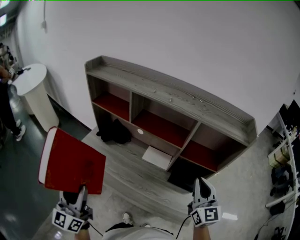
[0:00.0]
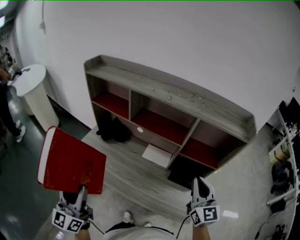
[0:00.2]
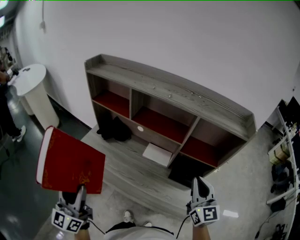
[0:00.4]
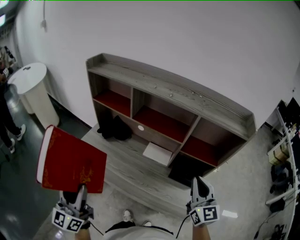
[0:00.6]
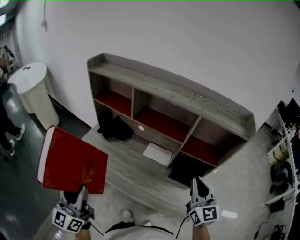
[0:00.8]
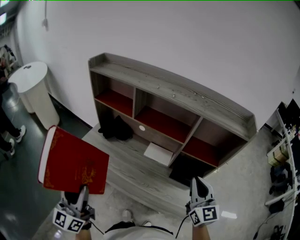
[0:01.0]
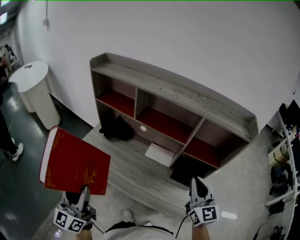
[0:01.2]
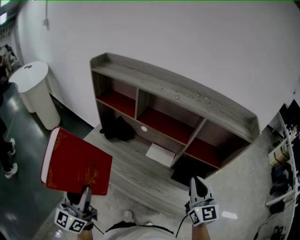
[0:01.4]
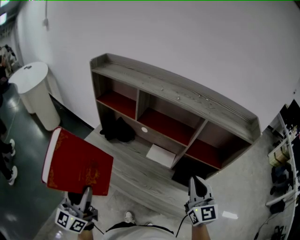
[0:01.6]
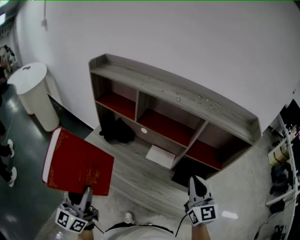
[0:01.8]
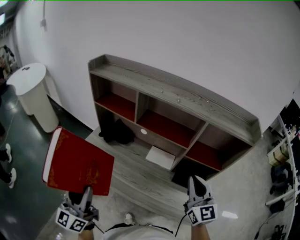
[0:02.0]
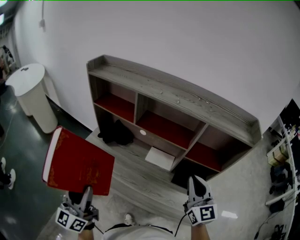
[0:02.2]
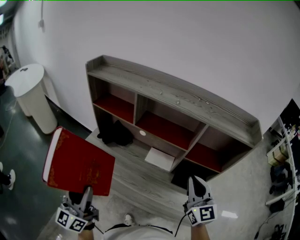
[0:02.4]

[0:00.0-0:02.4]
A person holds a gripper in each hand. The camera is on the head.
0:00.0 to 0:01.2: The grippers move only a little.
0:01.2 to 0:02.4: The left gripper moves approximately 5 cm.

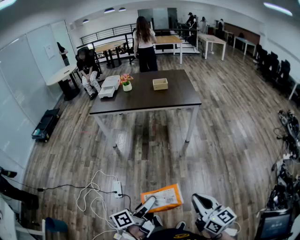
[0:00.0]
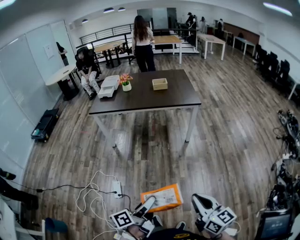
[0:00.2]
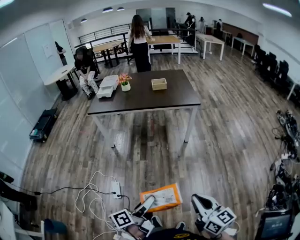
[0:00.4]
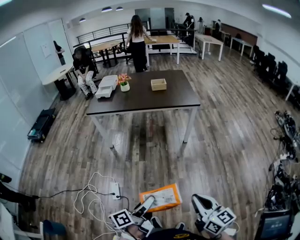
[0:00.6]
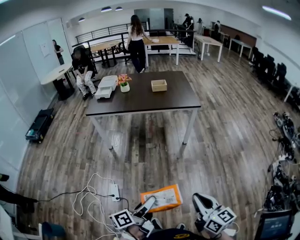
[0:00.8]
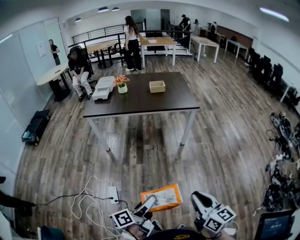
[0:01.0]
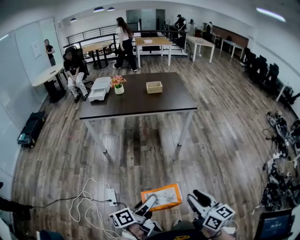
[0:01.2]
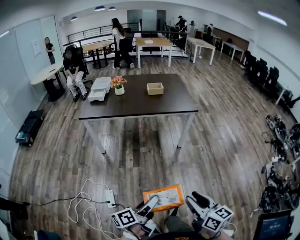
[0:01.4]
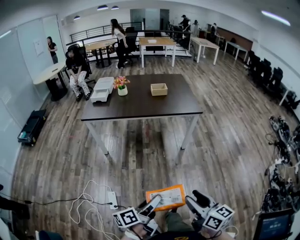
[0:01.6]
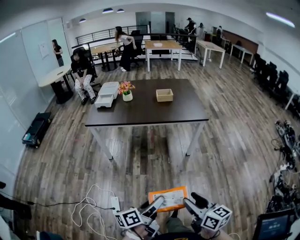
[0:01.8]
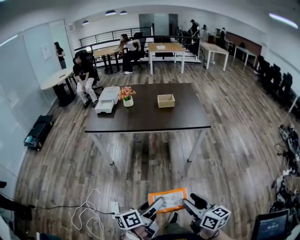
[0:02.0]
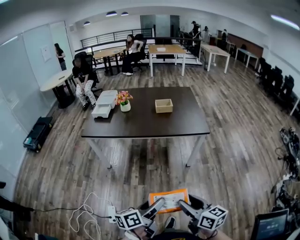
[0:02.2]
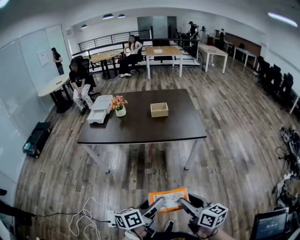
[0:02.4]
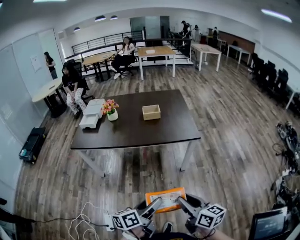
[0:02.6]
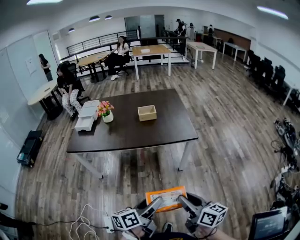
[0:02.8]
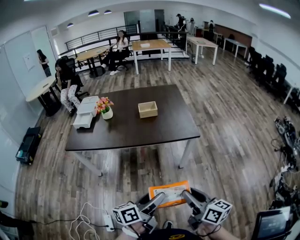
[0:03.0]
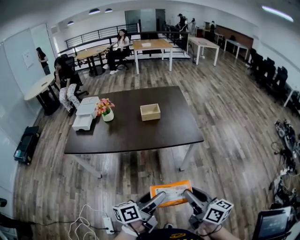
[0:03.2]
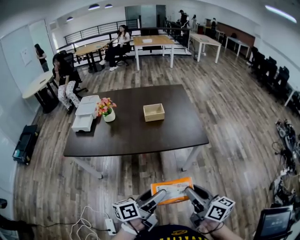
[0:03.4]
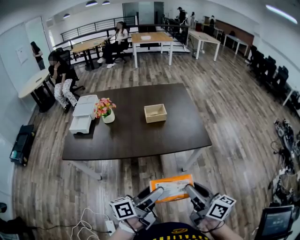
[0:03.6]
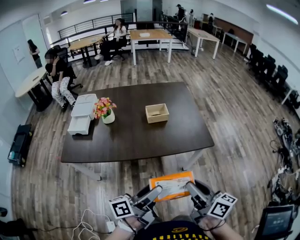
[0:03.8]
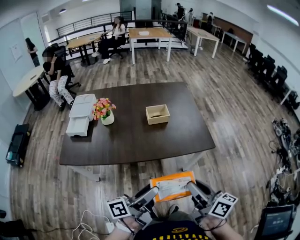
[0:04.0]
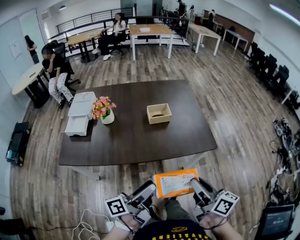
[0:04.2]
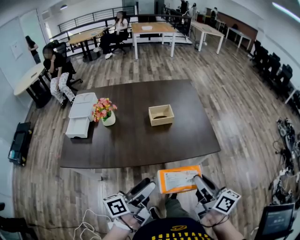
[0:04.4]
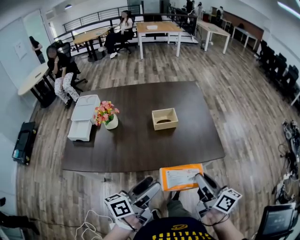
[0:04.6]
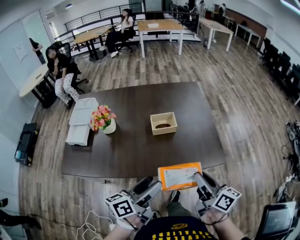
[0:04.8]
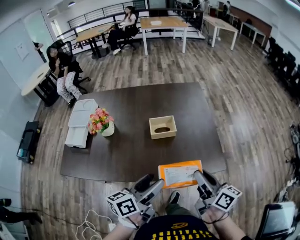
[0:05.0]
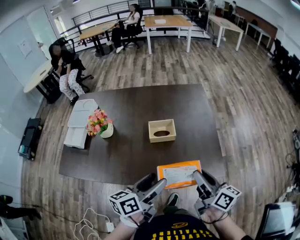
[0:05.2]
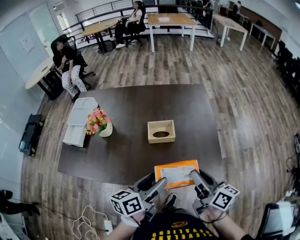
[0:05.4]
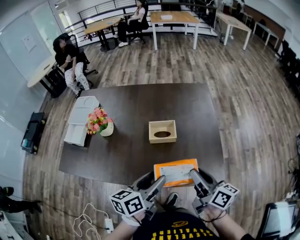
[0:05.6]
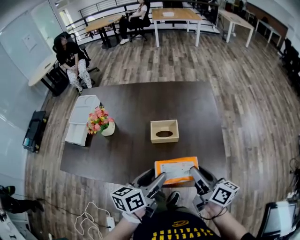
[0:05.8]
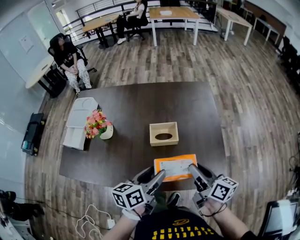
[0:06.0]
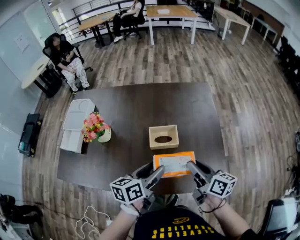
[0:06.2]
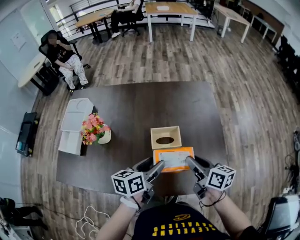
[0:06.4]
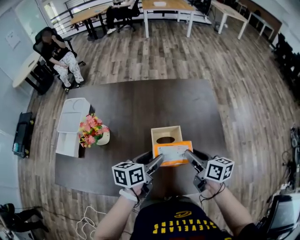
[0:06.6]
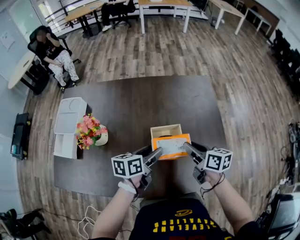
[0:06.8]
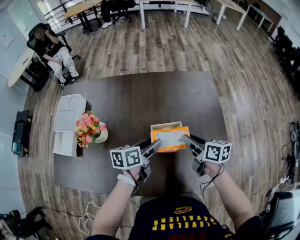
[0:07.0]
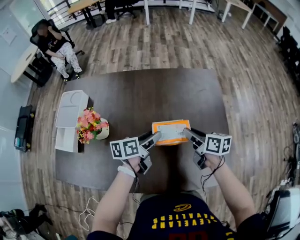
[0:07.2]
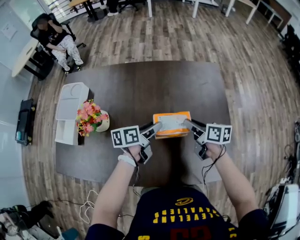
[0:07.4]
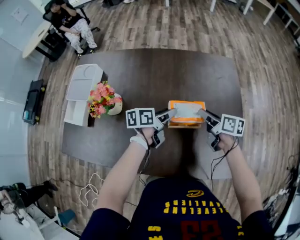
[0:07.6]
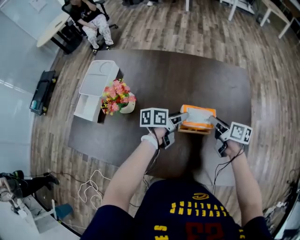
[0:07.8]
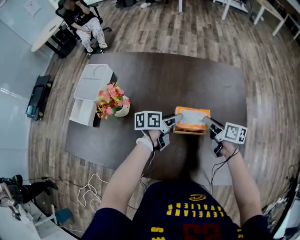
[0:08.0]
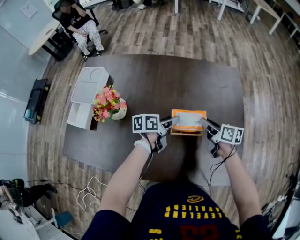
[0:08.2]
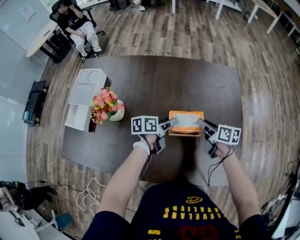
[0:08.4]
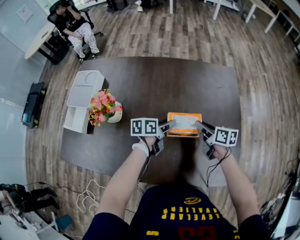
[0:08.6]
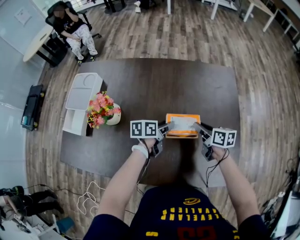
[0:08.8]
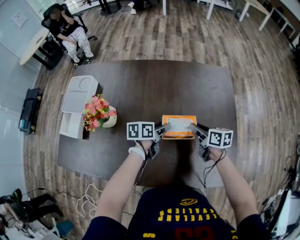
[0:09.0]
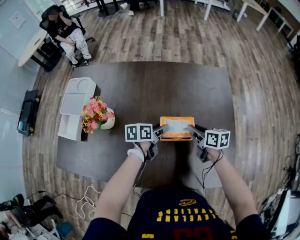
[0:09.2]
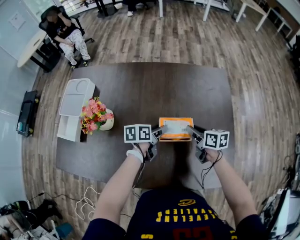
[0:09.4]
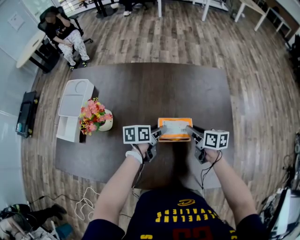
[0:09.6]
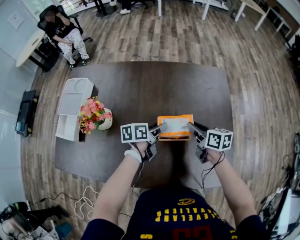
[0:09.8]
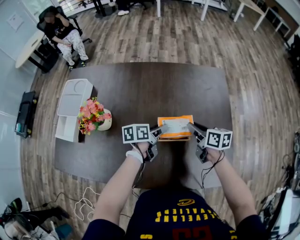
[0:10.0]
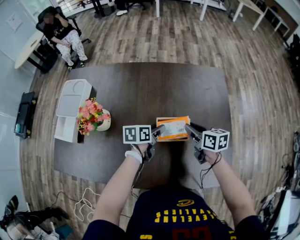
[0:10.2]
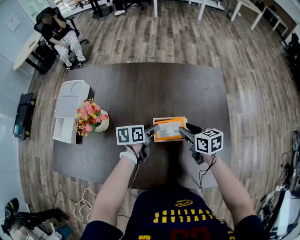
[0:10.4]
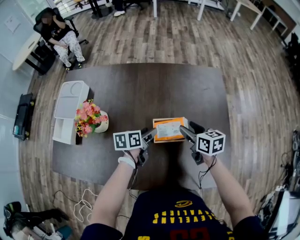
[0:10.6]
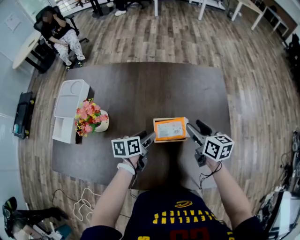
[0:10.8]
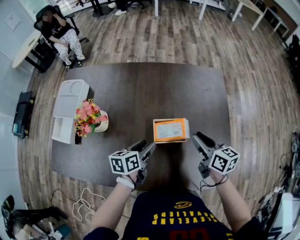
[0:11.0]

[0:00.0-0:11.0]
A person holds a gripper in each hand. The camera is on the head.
0:00.0 to 0:01.6: The two grippers go about 15 cm forward and to the left. The right gripper opens its fingers.
0:01.6 to 0:03.2: Both grippers move forward, roughly 35 cm.
0:03.2 to 0:04.8: The right gripper shifts some 35 cm forward. Meanwhile the left gripper travels forward and to the left by roughly 30 cm.
0:04.8 to 0:06.2: The two grippers go roughly 20 cm forward.
0:06.2 to 0:07.8: The two grippers go approximately 20 cm forward and downward. The right gripper swivels approximately 20 degrees.
0:07.8 to 0:09.4: There are only small adjustments of the grippers.
0:09.4 to 0:11.0: The right gripper heads upward, covering about 10 cm. The left gripper travels backward by roughly 5 cm.

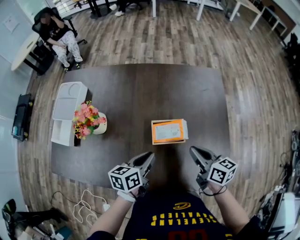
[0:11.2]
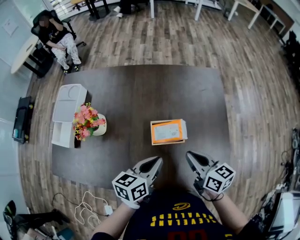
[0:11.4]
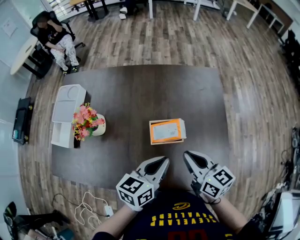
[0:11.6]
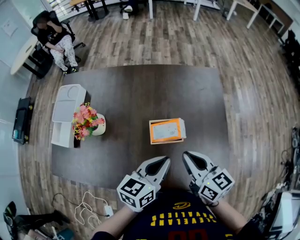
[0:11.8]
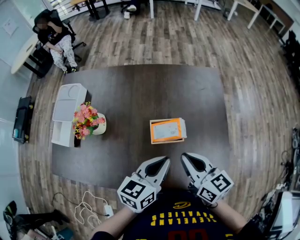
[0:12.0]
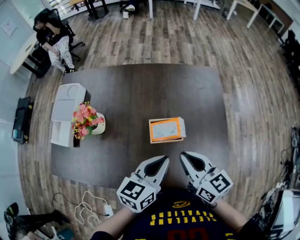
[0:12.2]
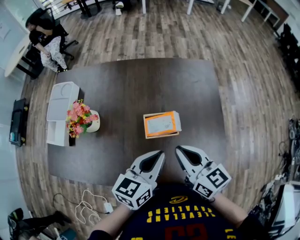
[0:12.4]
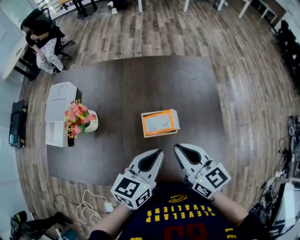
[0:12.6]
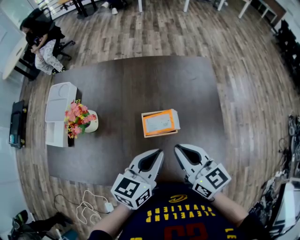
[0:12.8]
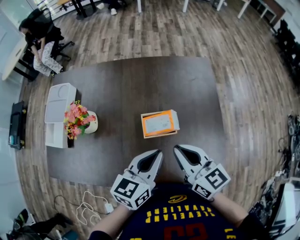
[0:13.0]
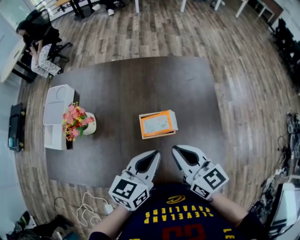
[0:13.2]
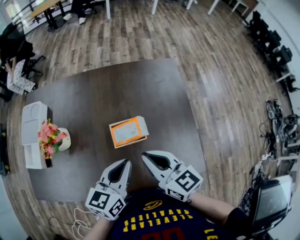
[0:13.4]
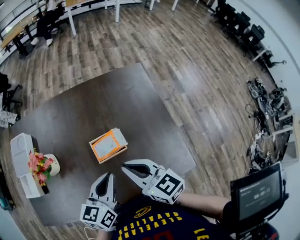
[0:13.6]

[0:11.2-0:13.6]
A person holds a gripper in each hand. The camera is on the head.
0:11.2 to 0:12.4: The left gripper travels upward and to the right by roughly 15 cm, and turns by some 20 degrees. Meanwhile the right gripper goes about 10 cm upward.
0:12.4 to 0:13.6: The grippers stay close to where they were, moving slightly.

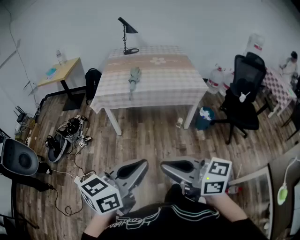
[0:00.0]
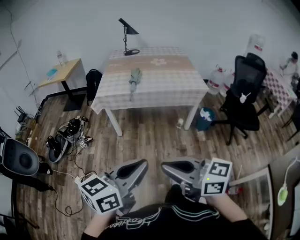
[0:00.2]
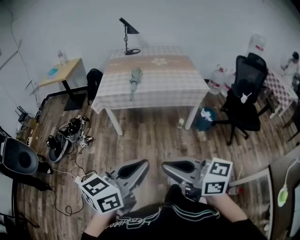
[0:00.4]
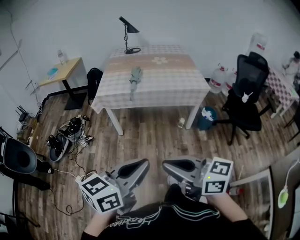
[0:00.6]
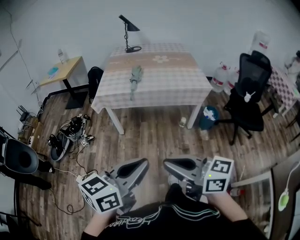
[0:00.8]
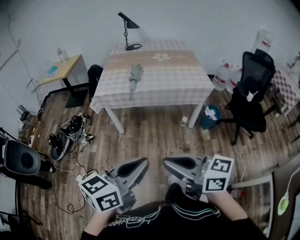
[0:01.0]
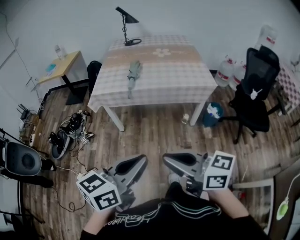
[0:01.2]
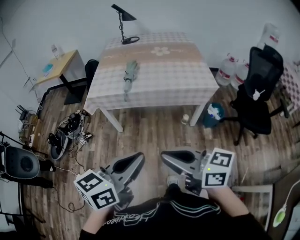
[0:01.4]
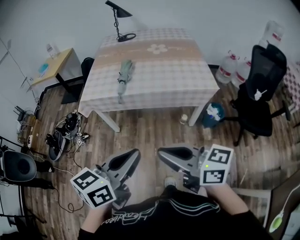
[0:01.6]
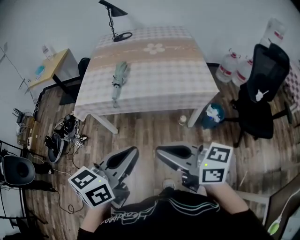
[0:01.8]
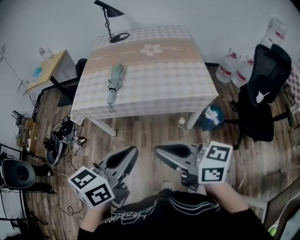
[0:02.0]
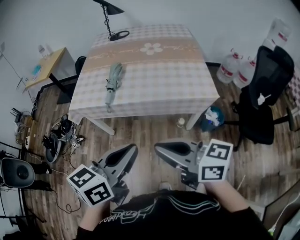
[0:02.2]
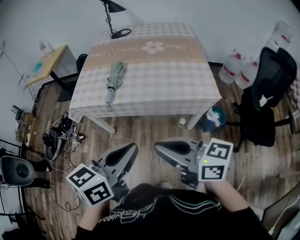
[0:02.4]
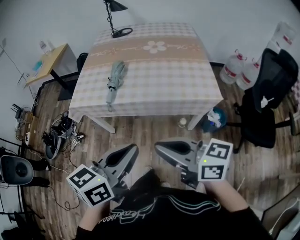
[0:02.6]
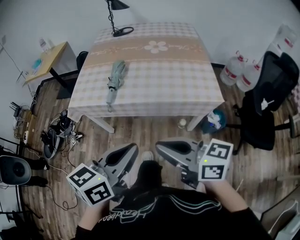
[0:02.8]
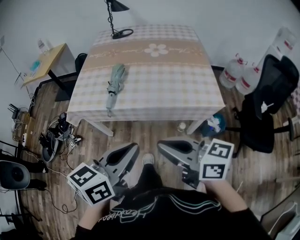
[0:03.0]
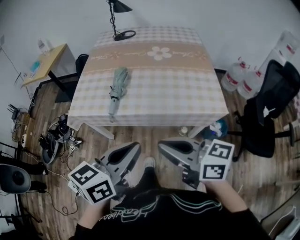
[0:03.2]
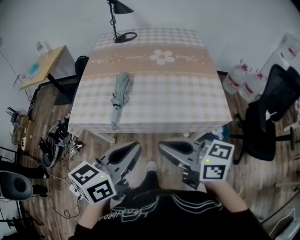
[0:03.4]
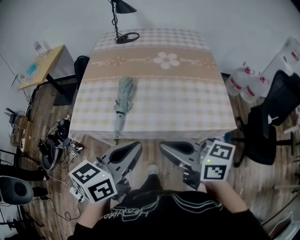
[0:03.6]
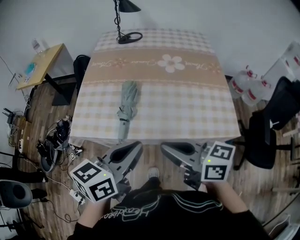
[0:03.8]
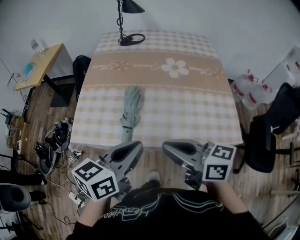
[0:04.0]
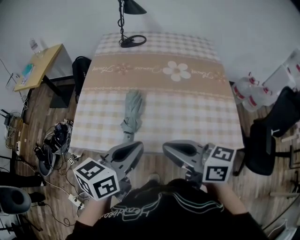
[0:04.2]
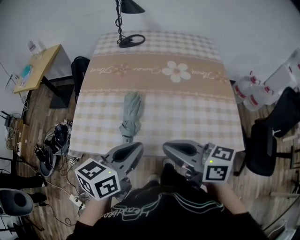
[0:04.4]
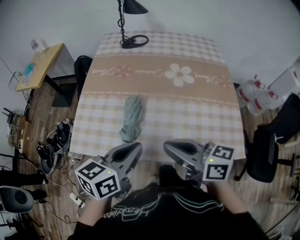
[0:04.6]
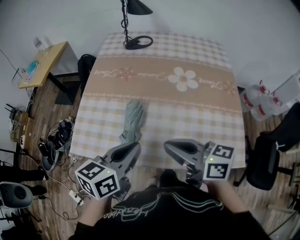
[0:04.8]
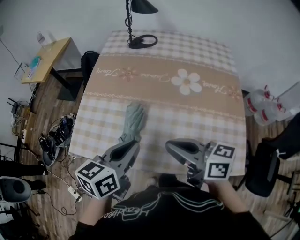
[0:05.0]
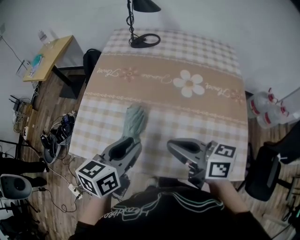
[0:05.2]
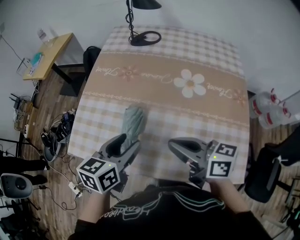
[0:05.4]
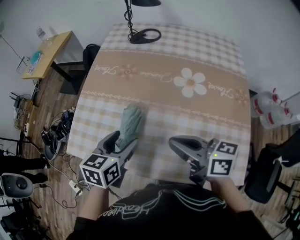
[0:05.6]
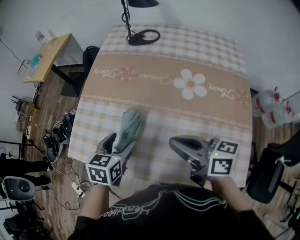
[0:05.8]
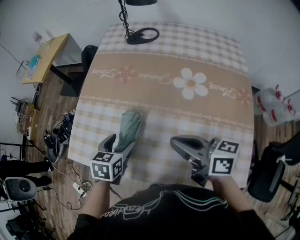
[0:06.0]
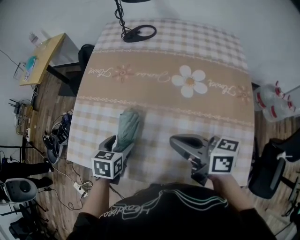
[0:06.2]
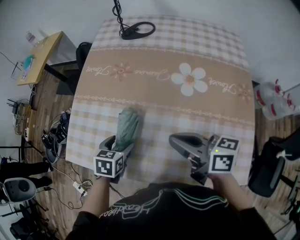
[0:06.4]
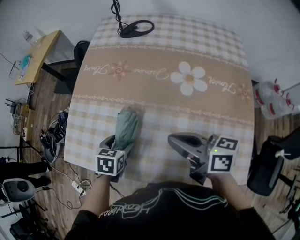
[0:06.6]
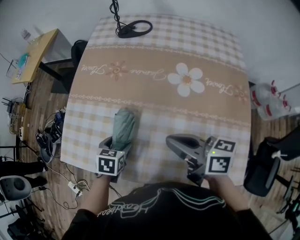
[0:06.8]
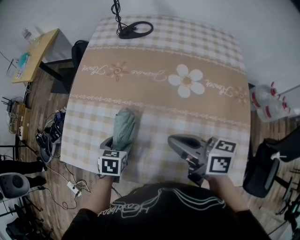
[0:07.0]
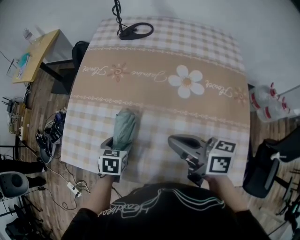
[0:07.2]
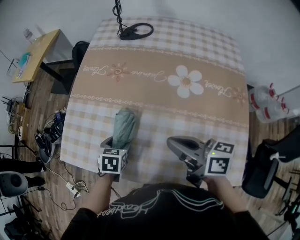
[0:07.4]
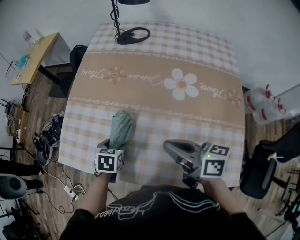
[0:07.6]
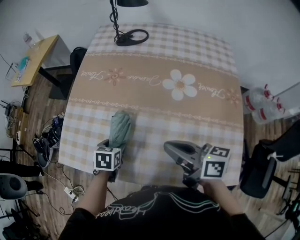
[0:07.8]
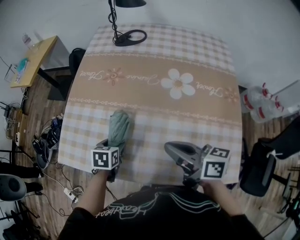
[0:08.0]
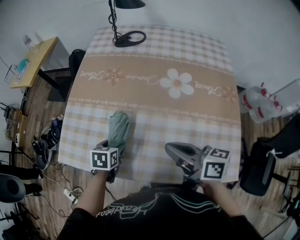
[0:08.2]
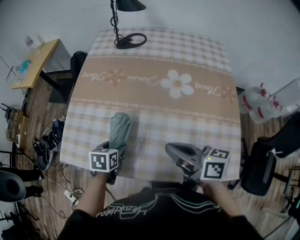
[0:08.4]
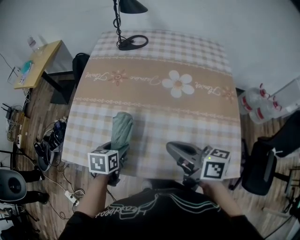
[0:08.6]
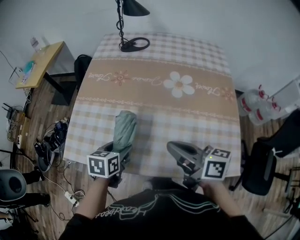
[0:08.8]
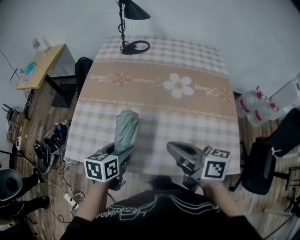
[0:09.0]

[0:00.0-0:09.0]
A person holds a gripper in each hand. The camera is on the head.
0:00.0 to 0:01.6: The grippers both shift forward and to the right by roughly 25 cm.
0:01.6 to 0:03.0: Both grippers move forward and to the right, approximately 20 cm.
0:03.0 to 0:04.4: Both grippers move forward, some 30 cm.
0:04.4 to 0:06.0: The left gripper goes about 25 cm forward and downward, tilts its fingers about 30 degrees downward, and opens its fingers. Meanwhile the right gripper shifts about 20 cm forward and to the right.
0:06.0 to 0:07.6: The left gripper shifts some 10 cm downward.
0:07.6 to 0:09.0: The left gripper is displaced upward and backward by approximately 15 cm, and rotates some 30 degrees. Meanwhile the right gripper moves backward, about 10 cm.
